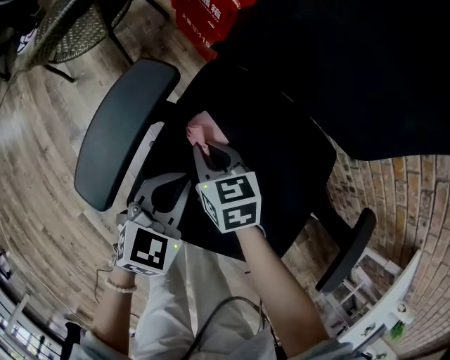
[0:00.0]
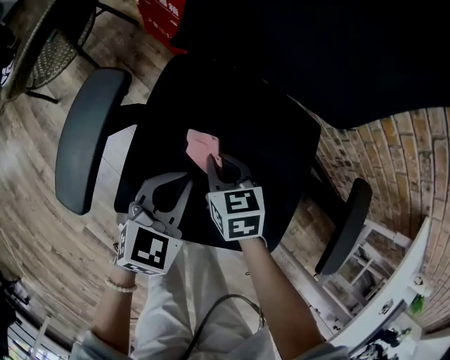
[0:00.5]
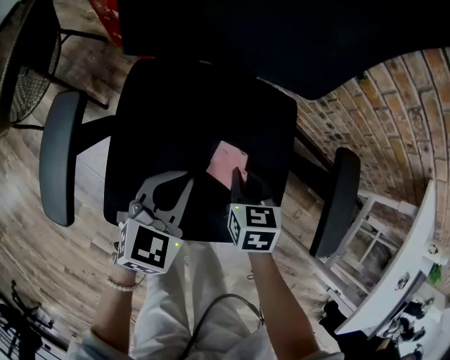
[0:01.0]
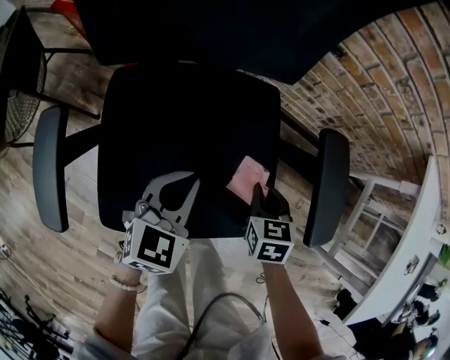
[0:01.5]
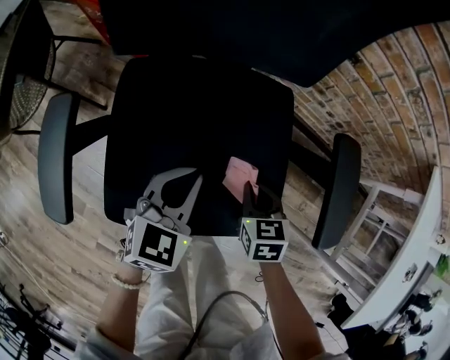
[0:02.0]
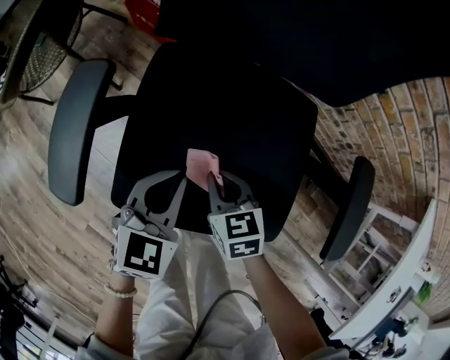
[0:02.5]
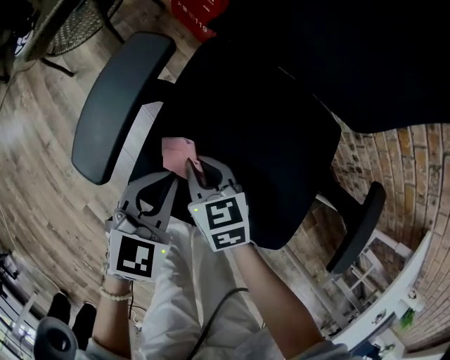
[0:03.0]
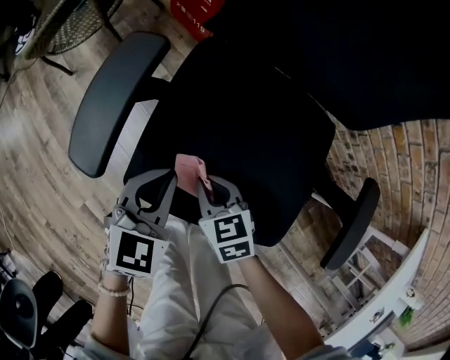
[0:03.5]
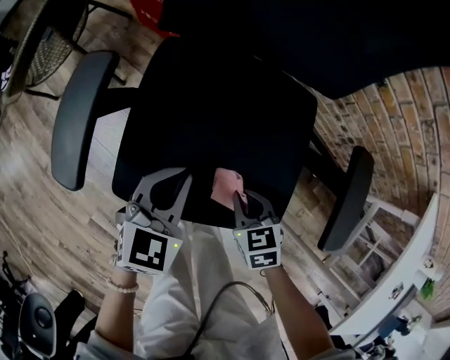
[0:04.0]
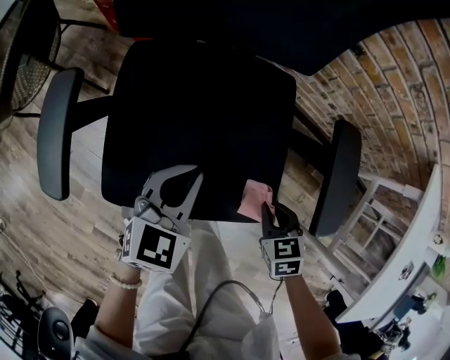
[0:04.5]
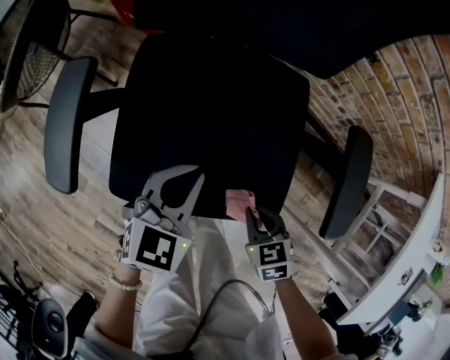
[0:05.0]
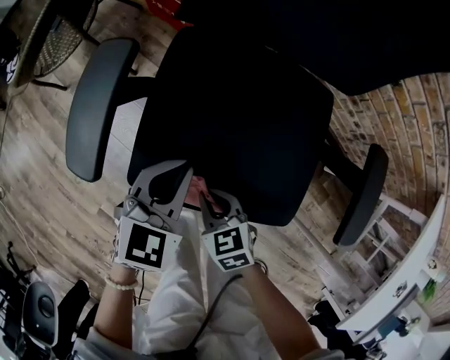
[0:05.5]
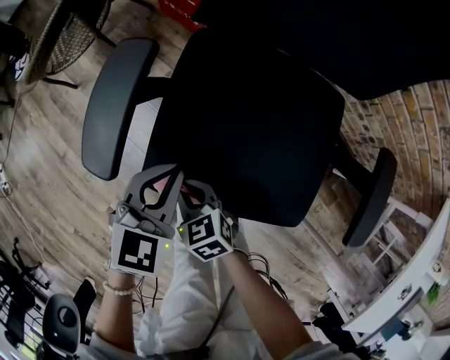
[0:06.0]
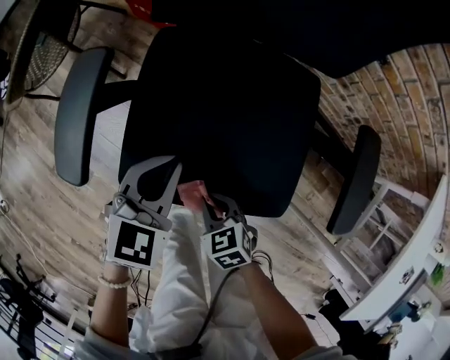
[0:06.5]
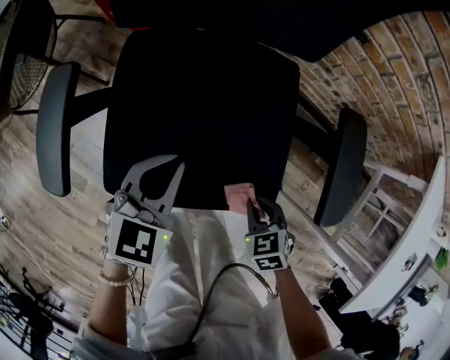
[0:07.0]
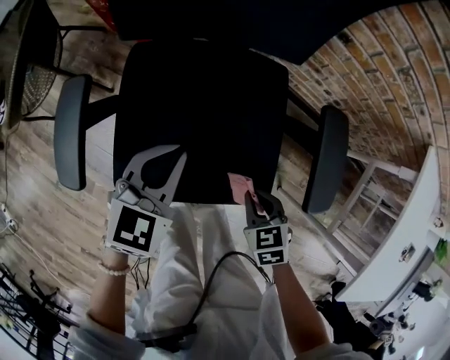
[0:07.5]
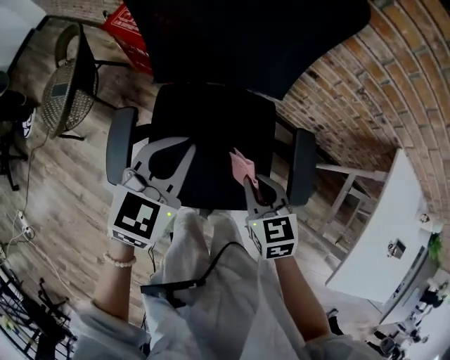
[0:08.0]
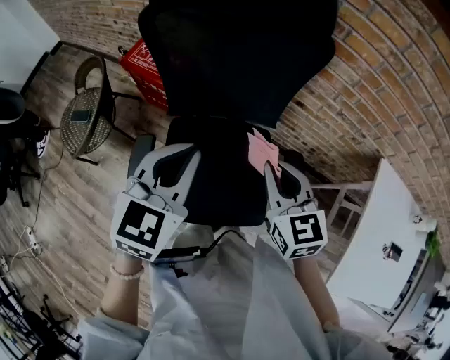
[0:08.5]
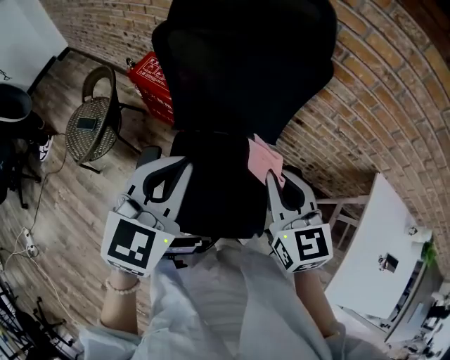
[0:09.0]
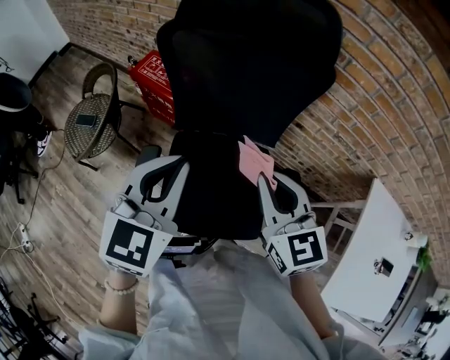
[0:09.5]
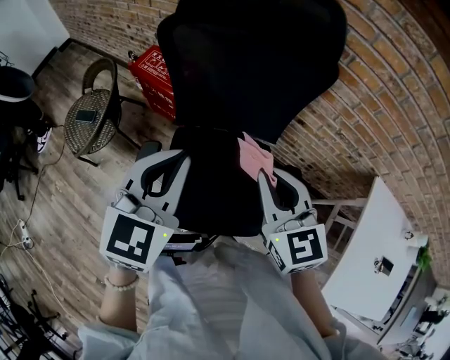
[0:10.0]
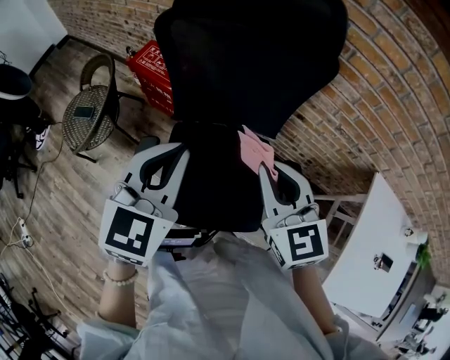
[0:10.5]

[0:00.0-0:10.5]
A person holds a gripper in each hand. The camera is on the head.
0:00.0 to 0:02.0: The left gripper shifts by about 15 cm, and rotates about 20 degrees. Meanwhile the right gripper ends up some 30 cm from where it was, and turns by some 40 degrees.
0:02.0 to 0:04.0: The right gripper rotates approximately 20 degrees.
0:06.5 to 0:08.5: Both grippers move upward, approximately 40 cm. The right gripper tilts its fingers some 30 degrees upward.
0:08.5 to 0:10.5: The left gripper changes place by about 5 cm, while the right gripper moves upward, approximately 5 cm.

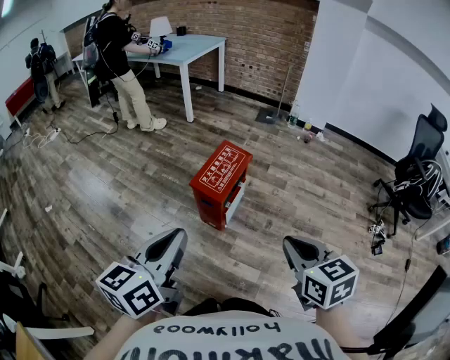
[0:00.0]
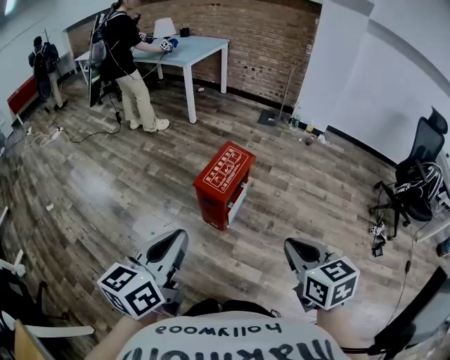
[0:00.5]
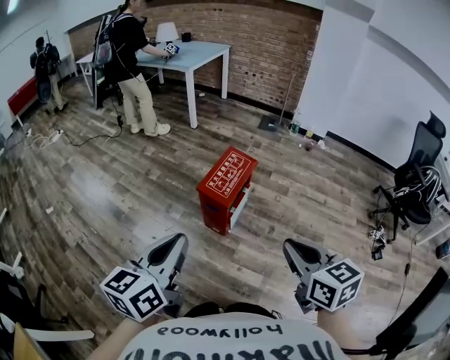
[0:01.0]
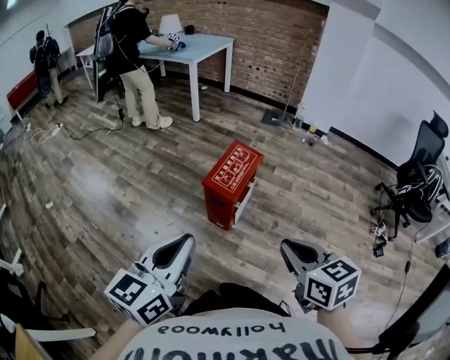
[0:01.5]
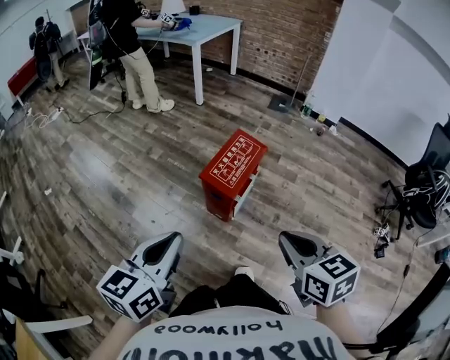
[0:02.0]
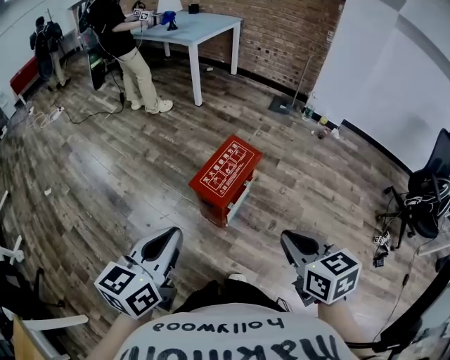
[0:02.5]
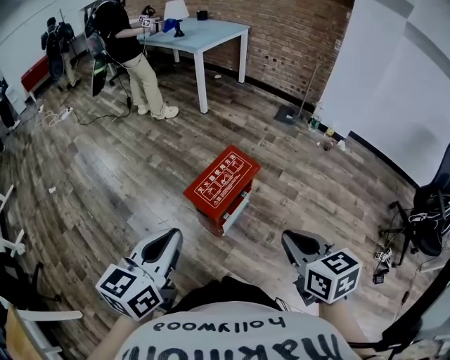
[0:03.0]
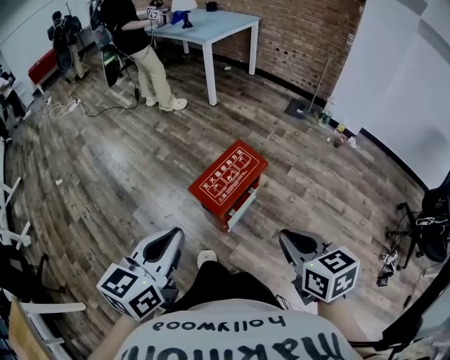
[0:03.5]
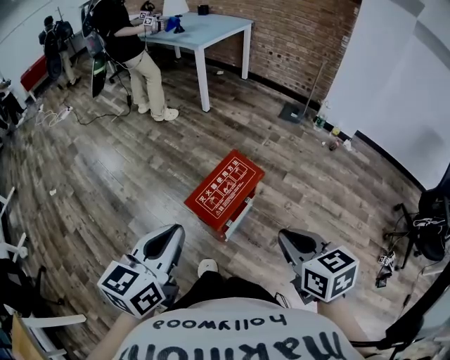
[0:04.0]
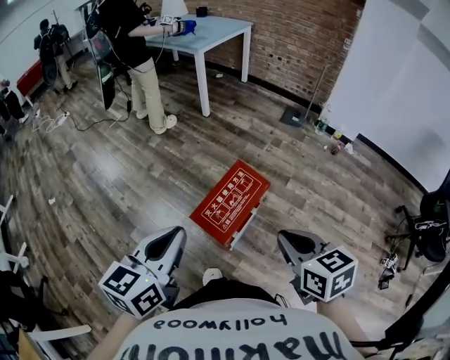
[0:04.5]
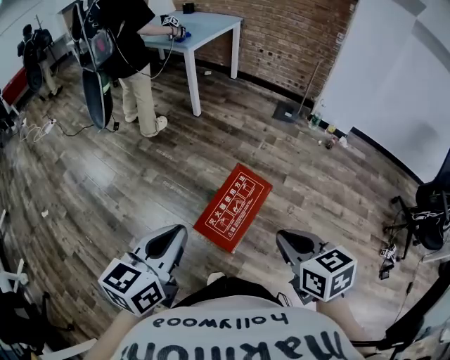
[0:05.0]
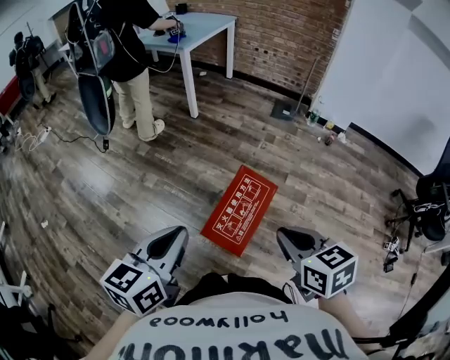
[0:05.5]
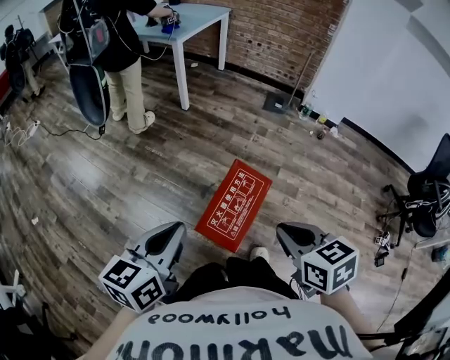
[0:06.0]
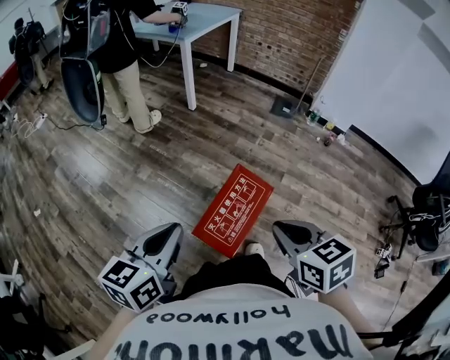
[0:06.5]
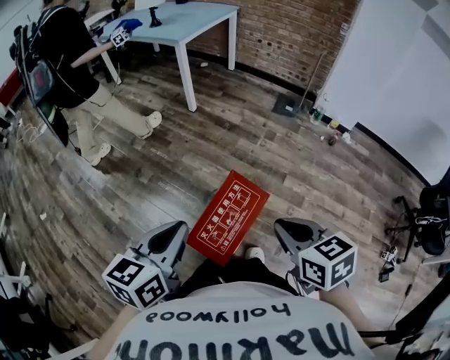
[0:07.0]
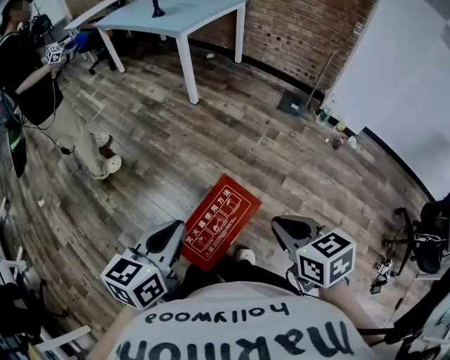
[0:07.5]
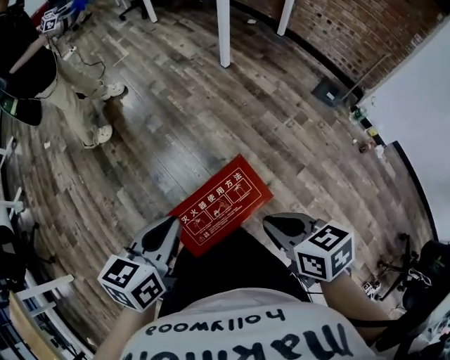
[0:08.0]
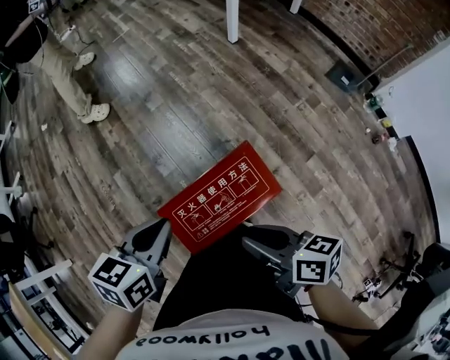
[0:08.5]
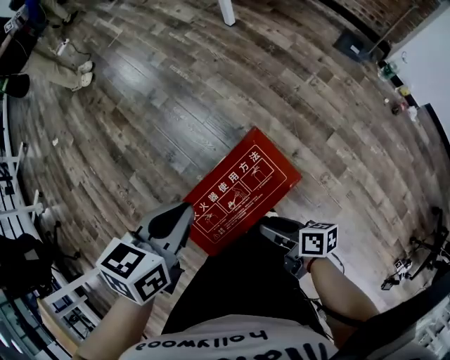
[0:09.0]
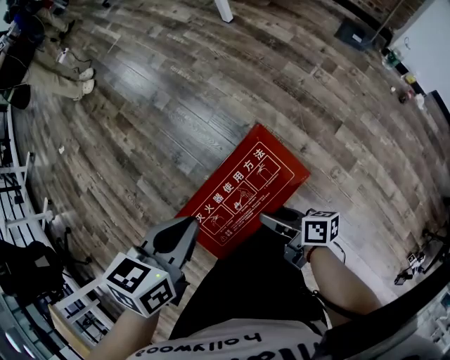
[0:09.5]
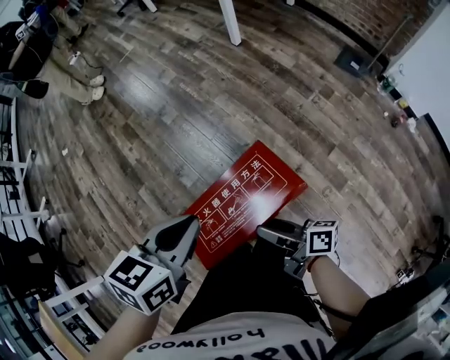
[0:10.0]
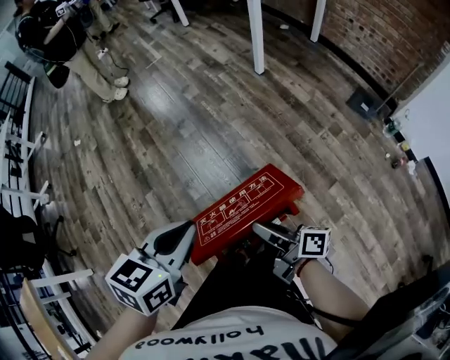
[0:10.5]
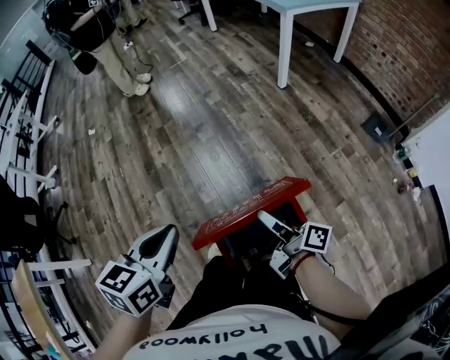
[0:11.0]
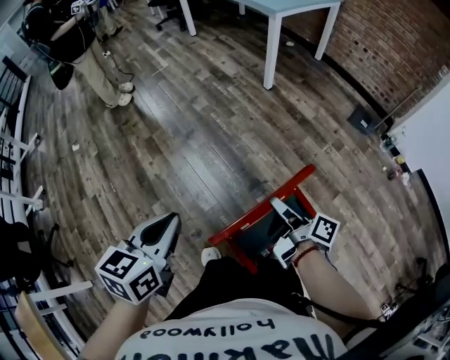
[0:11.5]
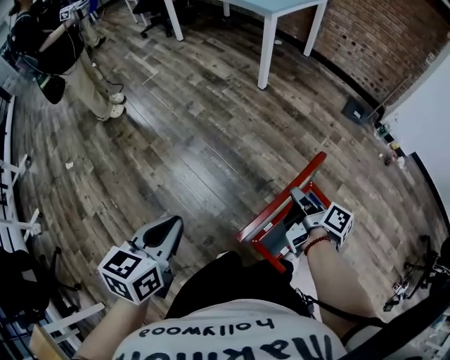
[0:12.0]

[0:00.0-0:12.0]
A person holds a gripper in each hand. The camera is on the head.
0:00.0 to 0:02.0: The left gripper heads downward and to the left, covering about 10 cm. The right gripper shifts roughly 10 cm to the left and forward.
0:02.0 to 0:04.0: Both grippers travel together forward and to the right, approximately 20 cm.
0:04.0 to 0:06.0: Both grippers travel together forward and to the left, some 15 cm.
0:06.0 to 0:08.0: The left gripper changes place by about 15 cm, and rotates roughly 30 degrees. The right gripper moves approximately 20 cm, and turns by approximately 30 degrees.
0:08.0 to 0:10.0: The left gripper is displaced downward by about 5 cm, while the right gripper shifts about 15 cm downward, angles its fingers upward, by approximately 40 degrees, and opens.
0:10.0 to 0:12.0: The left gripper shifts by roughly 30 cm; the right gripper shifts by about 20 cm, swivels approximately 40 degrees, and closes up.

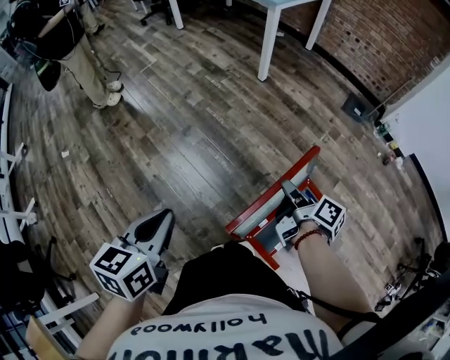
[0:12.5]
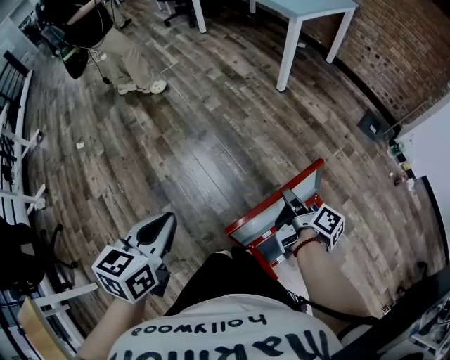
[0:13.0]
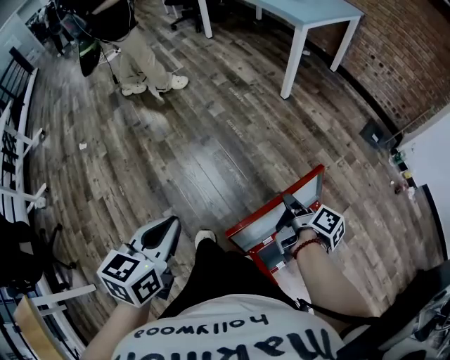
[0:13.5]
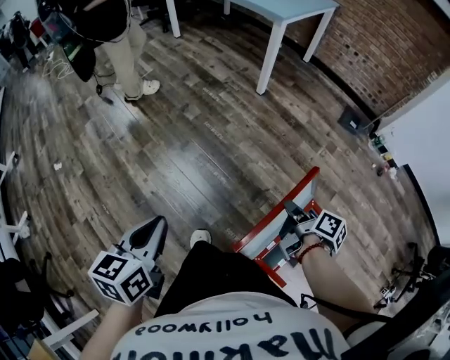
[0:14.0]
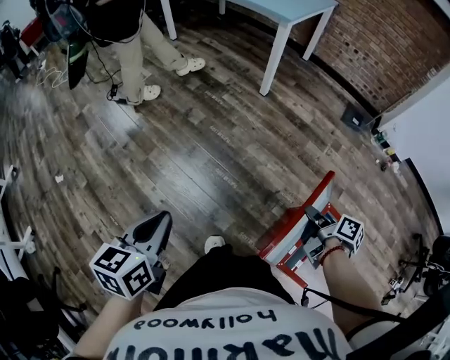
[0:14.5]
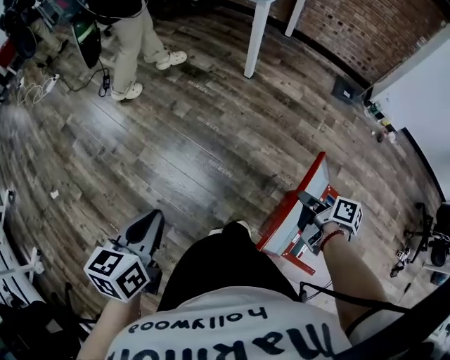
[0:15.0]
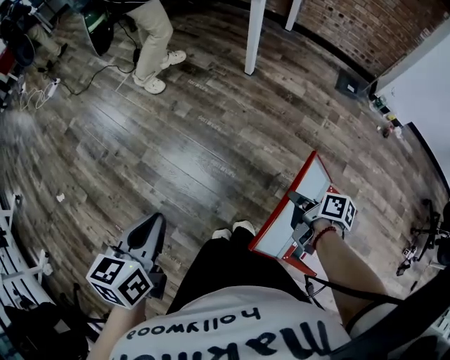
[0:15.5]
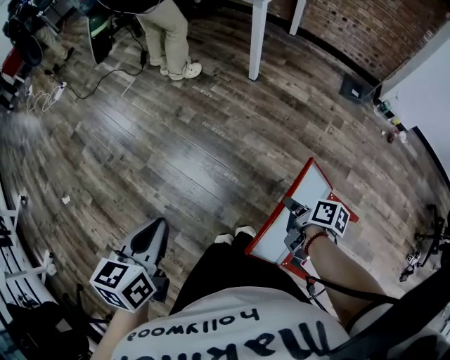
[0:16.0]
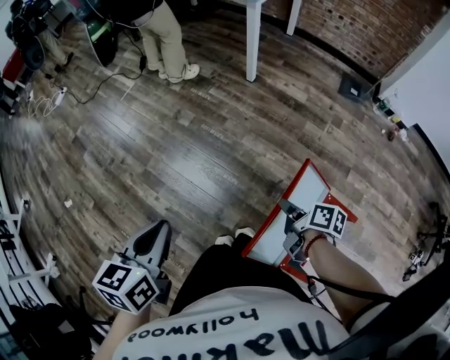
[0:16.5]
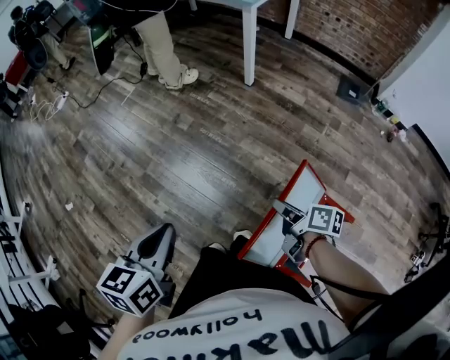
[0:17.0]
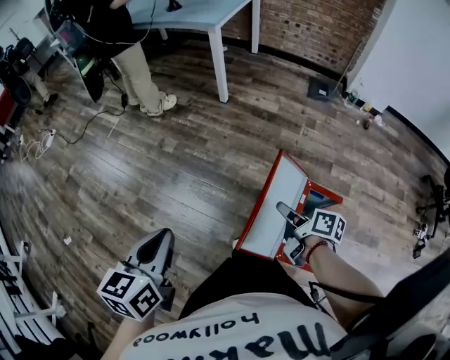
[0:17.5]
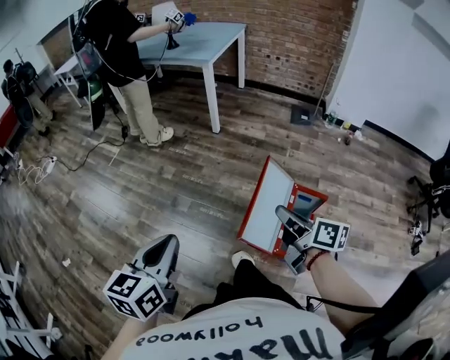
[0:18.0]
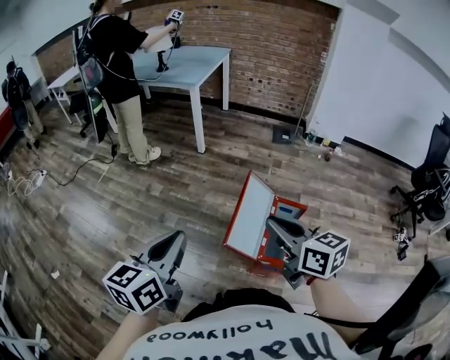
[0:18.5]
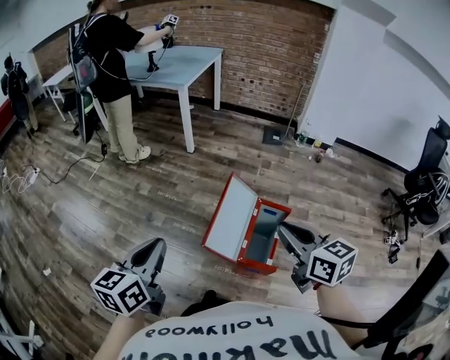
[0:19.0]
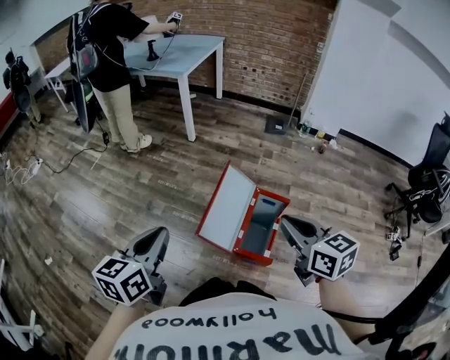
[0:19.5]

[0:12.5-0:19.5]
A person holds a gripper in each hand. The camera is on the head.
0:12.5 to 0:14.5: The left gripper moves to the left and forward, approximately 20 cm; the right gripper shifts by some 5 cm.
0:14.5 to 0:16.0: The left gripper goes approximately 5 cm forward. The right gripper heads downward, covering about 5 cm.
0:16.0 to 0:17.5: The left gripper heads backward and to the right, covering some 5 cm. The right gripper moves backward and upward, roughly 10 cm, and opens its fingers.
0:17.5 to 0:19.5: The right gripper moves upward and backward, about 30 cm, twists some 50 degrees counterclockwise, seen from behind, and closes its fingers; the left gripper shifts some 15 cm backward, to the right and upward.
